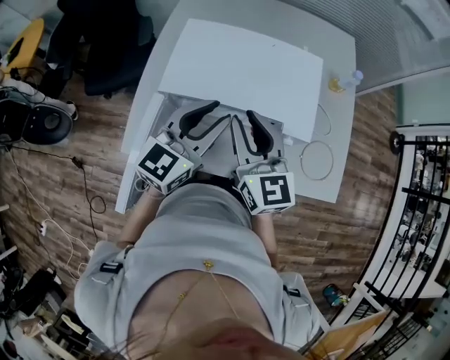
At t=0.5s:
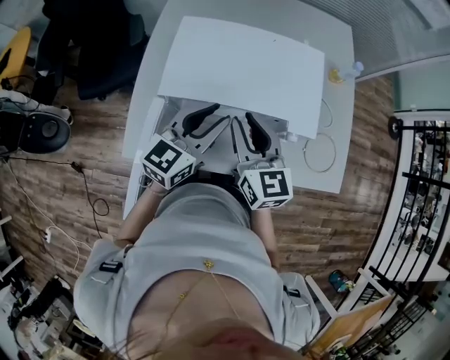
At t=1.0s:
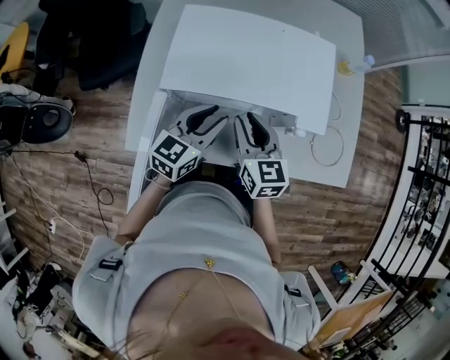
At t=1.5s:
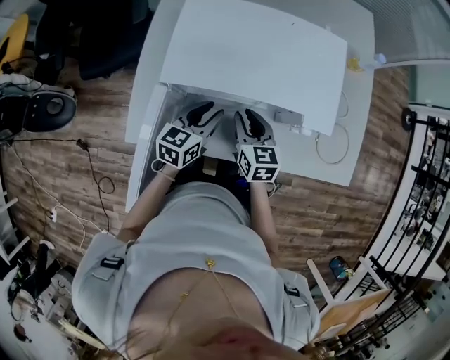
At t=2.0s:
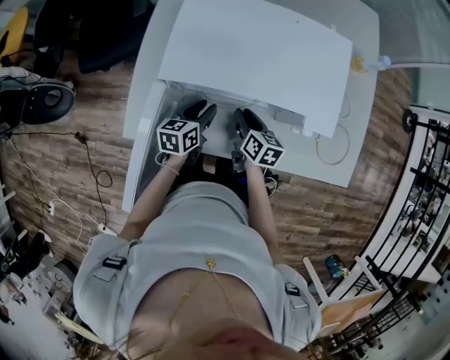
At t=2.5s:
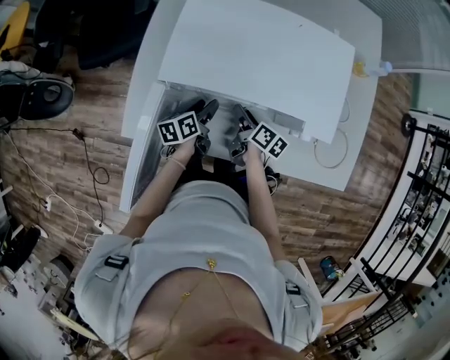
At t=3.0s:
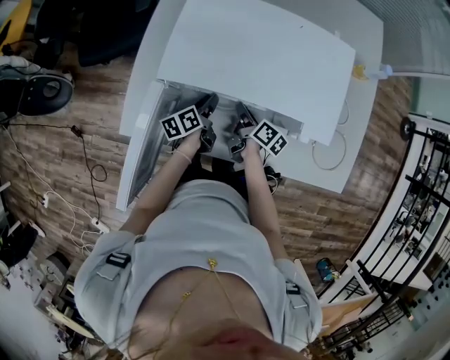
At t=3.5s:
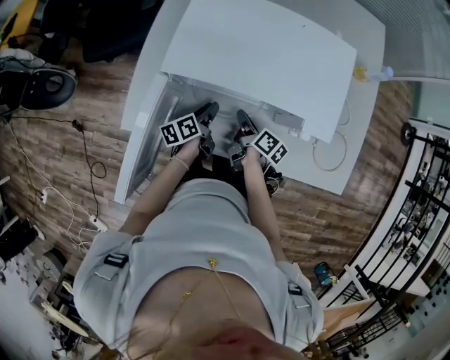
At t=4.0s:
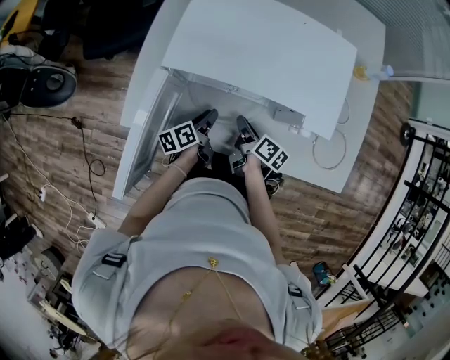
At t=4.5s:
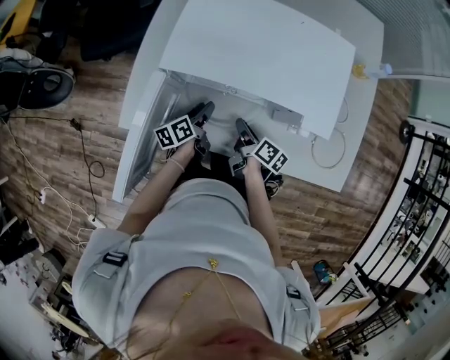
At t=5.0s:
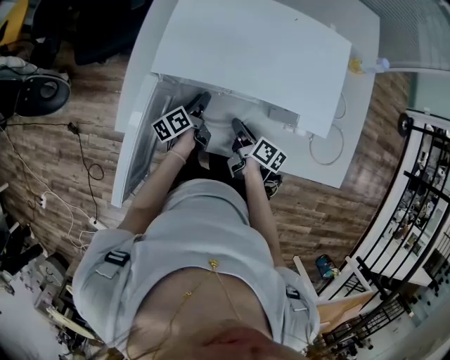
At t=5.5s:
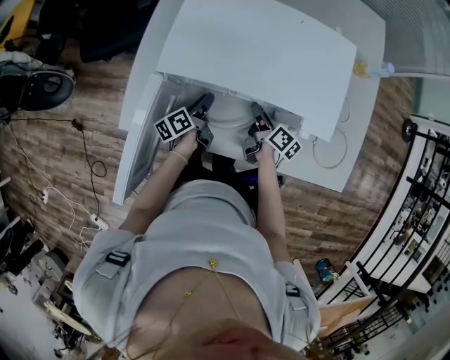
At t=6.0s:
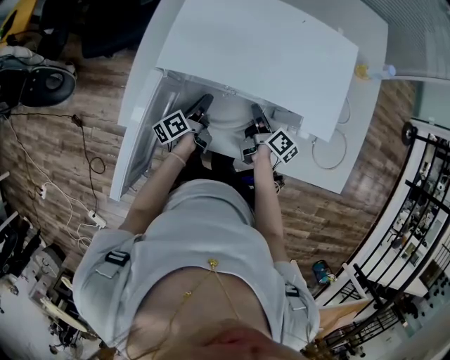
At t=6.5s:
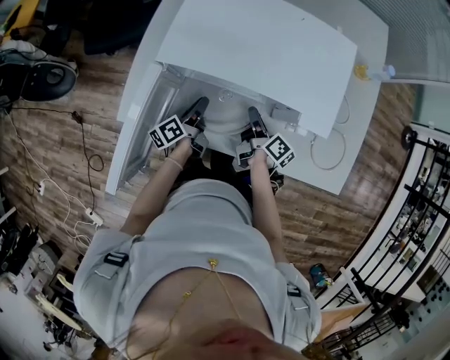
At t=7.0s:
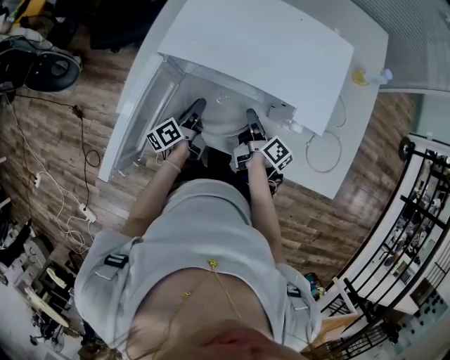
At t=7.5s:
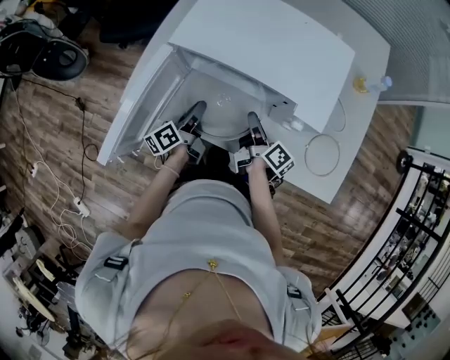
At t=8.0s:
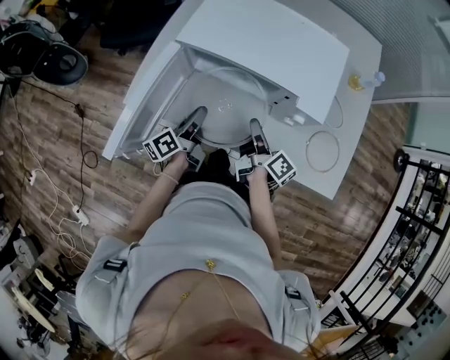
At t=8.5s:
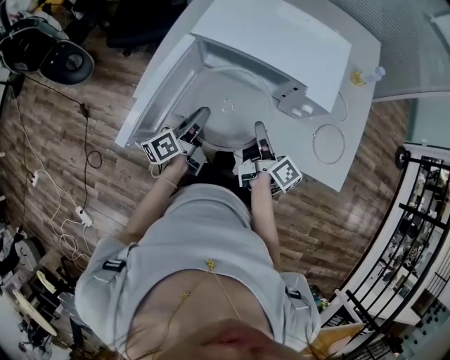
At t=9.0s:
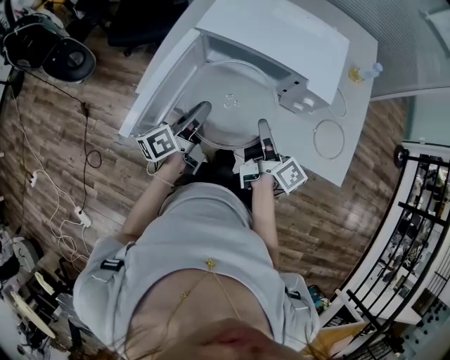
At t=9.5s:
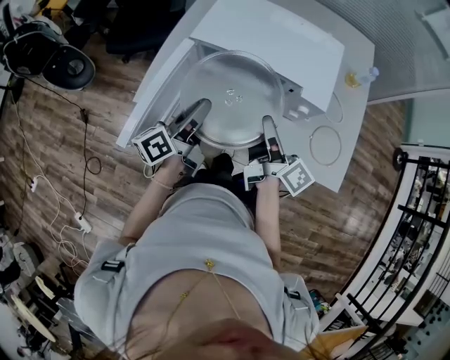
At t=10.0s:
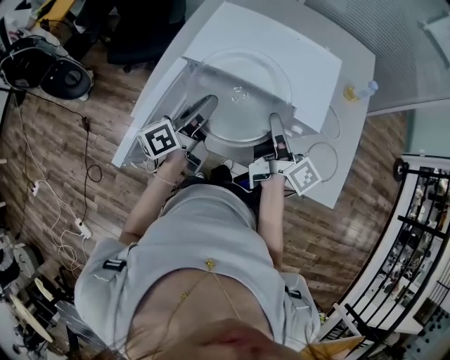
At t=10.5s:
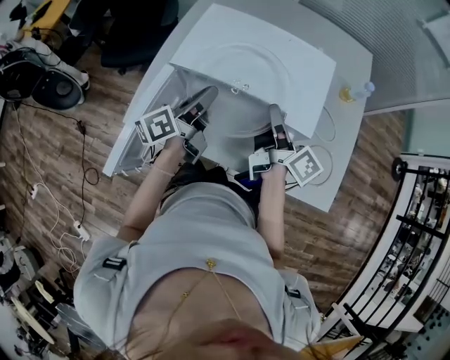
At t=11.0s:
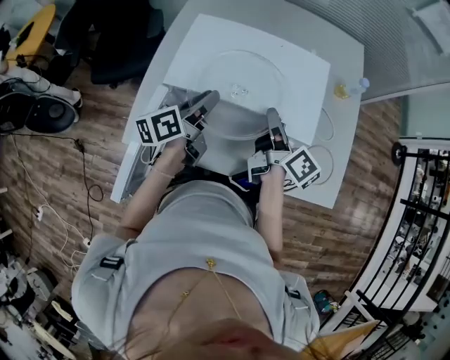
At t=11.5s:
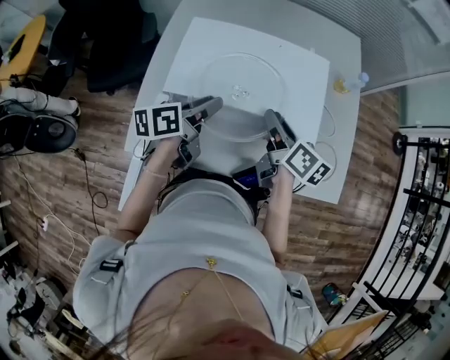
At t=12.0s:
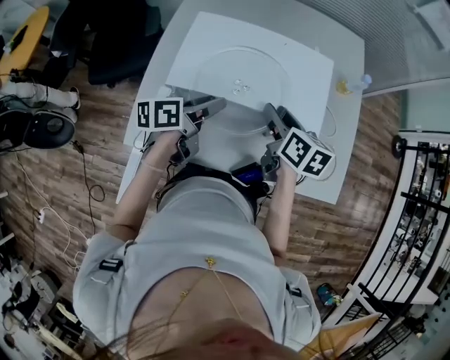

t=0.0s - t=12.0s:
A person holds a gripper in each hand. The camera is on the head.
t=0.0s - t=2.0s: The grippers both shift downward by some 30 cm. The left gripper rotates approximately 40 degrees. Meanwhile the right gripper swivels some 50 degrees.
t=2.0s - t=4.0s: The right gripper ends up some 5 cm from where it was, and turns by approximately 30 degrees. The left gripper shifts about 5 cm downward, and changes its angle by roughly 40 degrees.
t=4.0s - t=6.0s: The right gripper ends up approximately 5 cm from where it was.
t=6.0s - t=8.0s: The left gripper travels backward and upward by about 15 cm, while the right gripper heads upward and backward, covering some 15 cm.
t=8.0s - t=10.0s: The two grippers go approximately 15 cm upward.
t=10.0s - t=12.0s: The grippers both shift forward by roughly 10 cm. The left gripper rotates approximately 30 degrees, and opens up; the right gripper tips its fingers downward by roughly 30 degrees, and opens.

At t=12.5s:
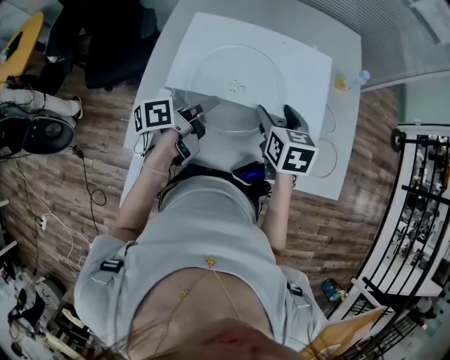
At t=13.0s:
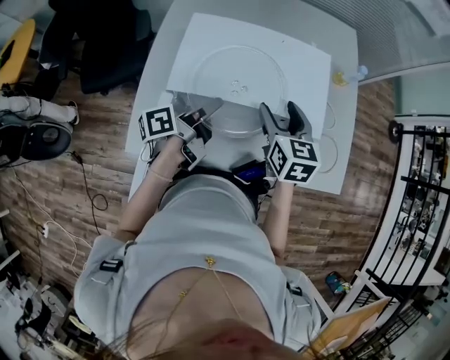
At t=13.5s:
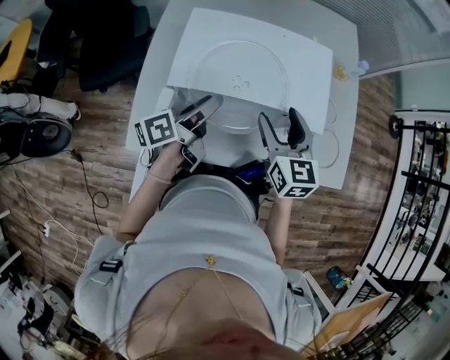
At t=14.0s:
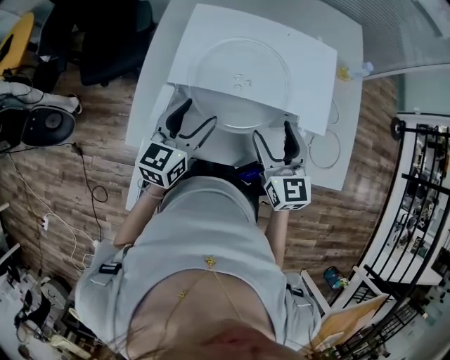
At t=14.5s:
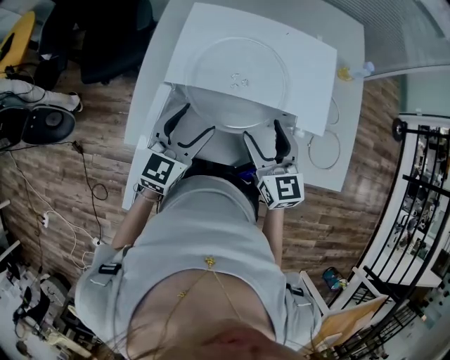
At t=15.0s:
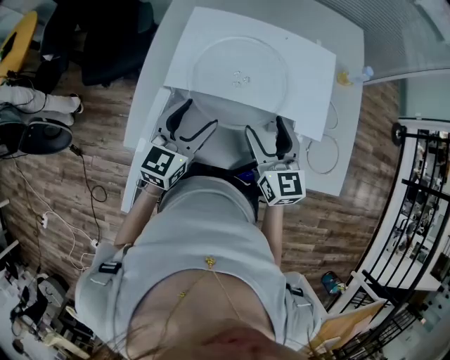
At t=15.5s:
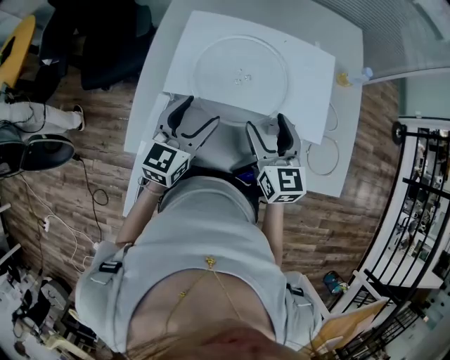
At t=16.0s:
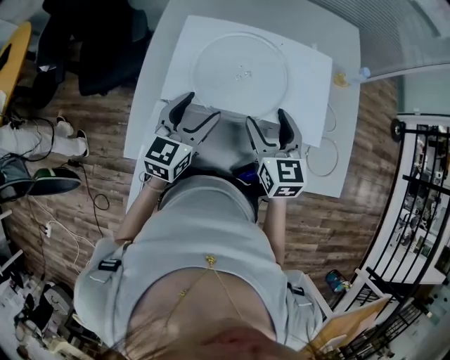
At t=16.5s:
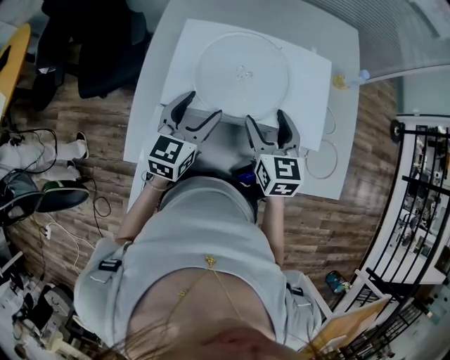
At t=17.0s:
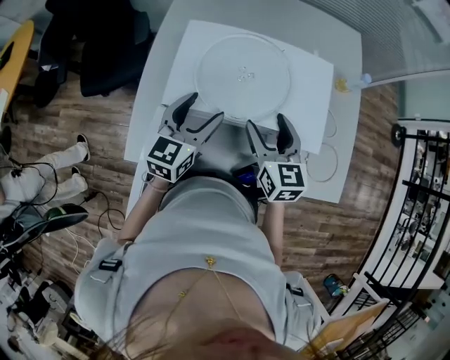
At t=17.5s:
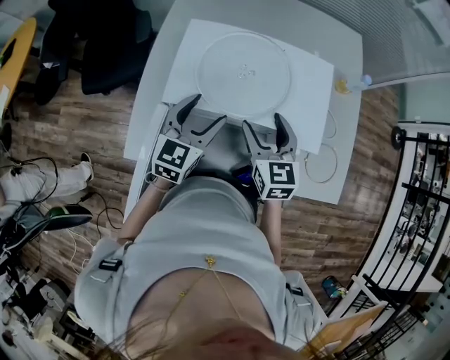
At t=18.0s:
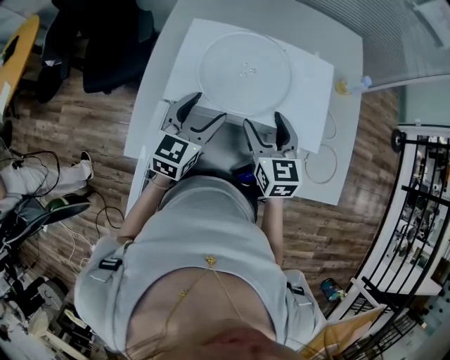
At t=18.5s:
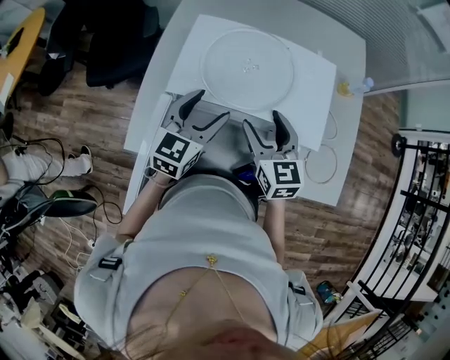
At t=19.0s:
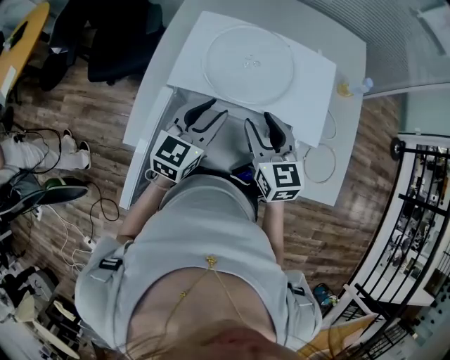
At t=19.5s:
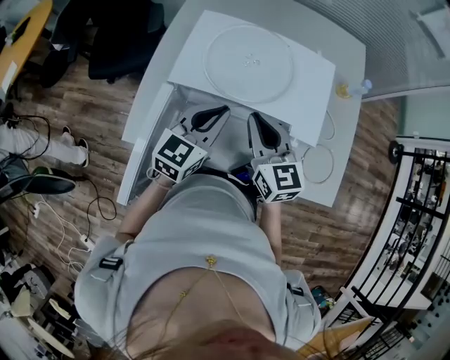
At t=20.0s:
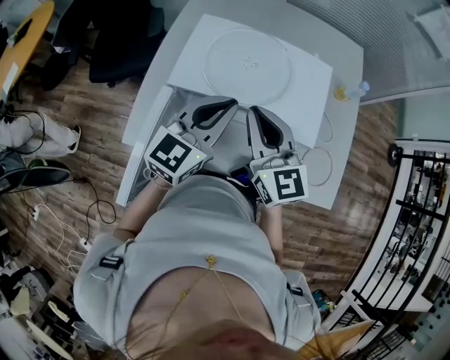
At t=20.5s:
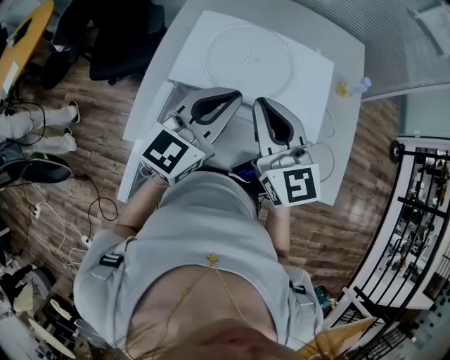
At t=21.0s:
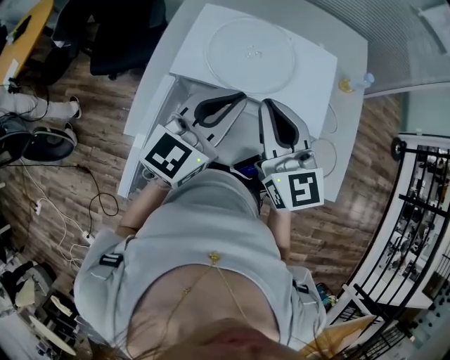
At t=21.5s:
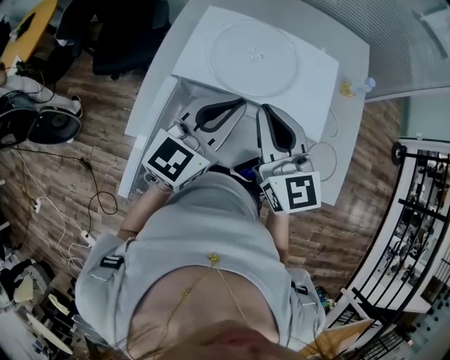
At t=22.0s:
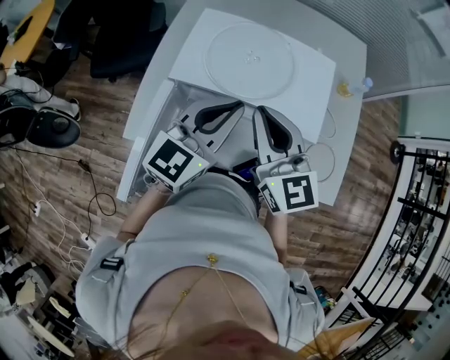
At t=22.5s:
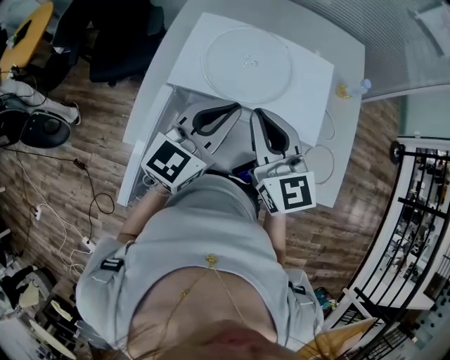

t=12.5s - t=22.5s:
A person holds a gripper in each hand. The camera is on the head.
t=12.5s - t=14.5s: Both grippers travel together backward, some 5 cm. The left gripper rotates around the line of its fingers by roughly 70 degrees, clockwise from behind, and opens up. Meanwhile the right gripper swivels approximately 30 degrees.
t=14.5s - t=16.5s: Both grippers travel together forward, roughly 10 cm.
t=16.5s - t=18.5s: The grippers make only small movements.
t=18.5s - t=20.5s: The grippers both shift upward by about 15 cm. The left gripper closes its fingers. Meanwhile the right gripper changes its angle by roughly 20 degrees, and closes up.
t=20.5s - t=22.5s: There are only small adjustments of the grippers.

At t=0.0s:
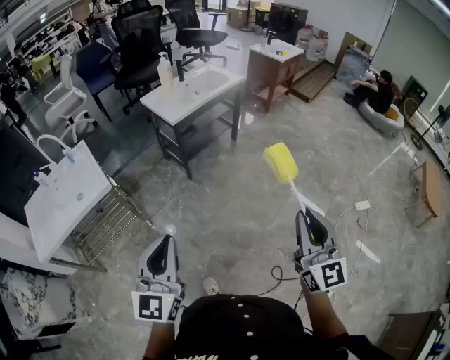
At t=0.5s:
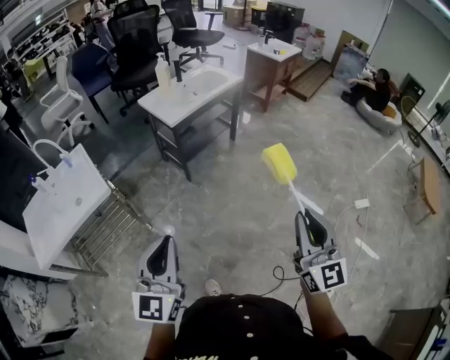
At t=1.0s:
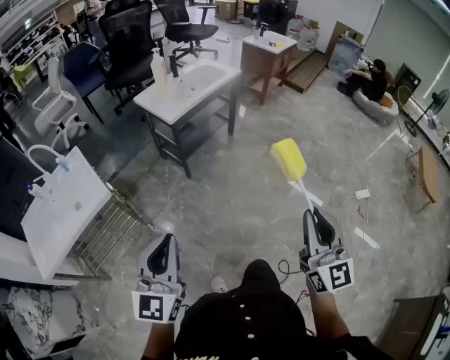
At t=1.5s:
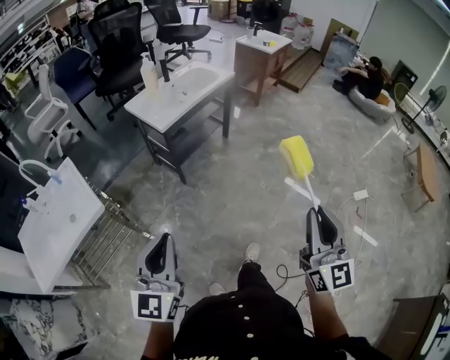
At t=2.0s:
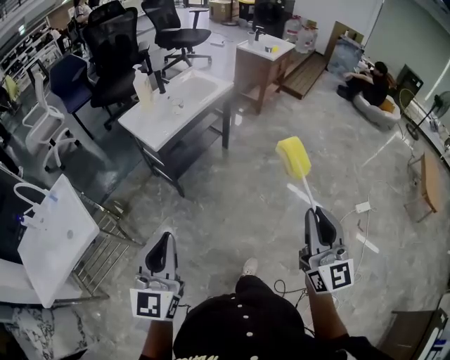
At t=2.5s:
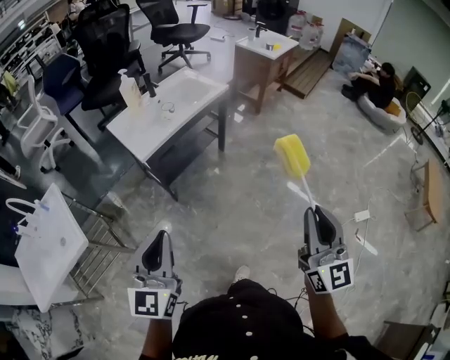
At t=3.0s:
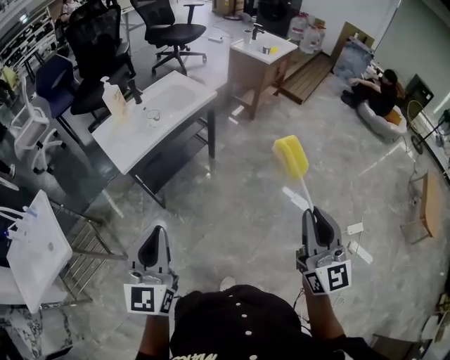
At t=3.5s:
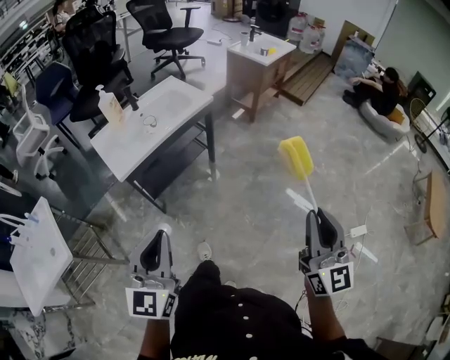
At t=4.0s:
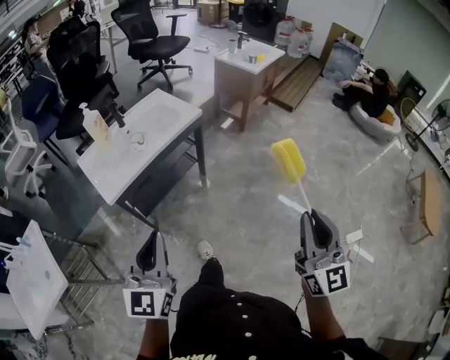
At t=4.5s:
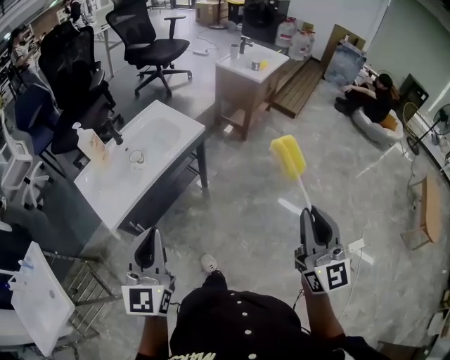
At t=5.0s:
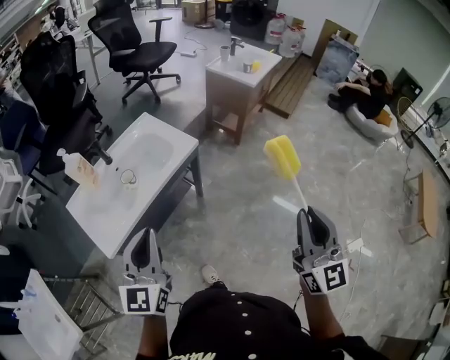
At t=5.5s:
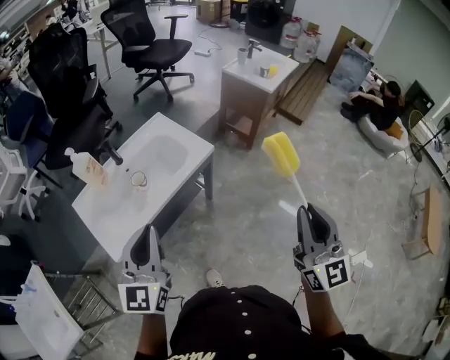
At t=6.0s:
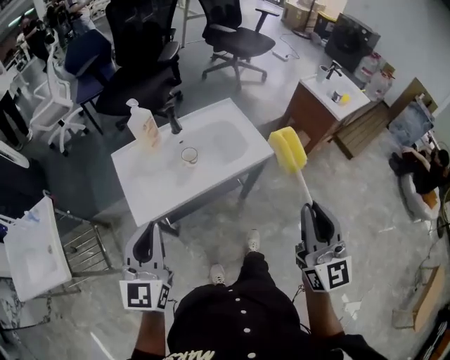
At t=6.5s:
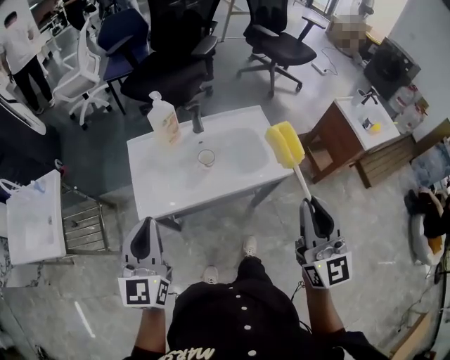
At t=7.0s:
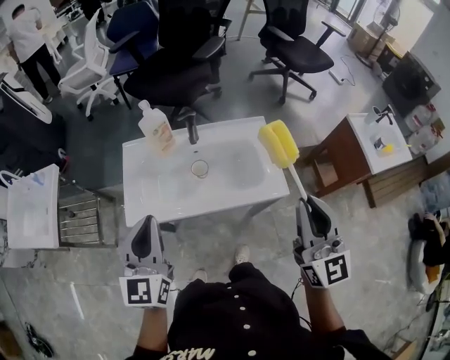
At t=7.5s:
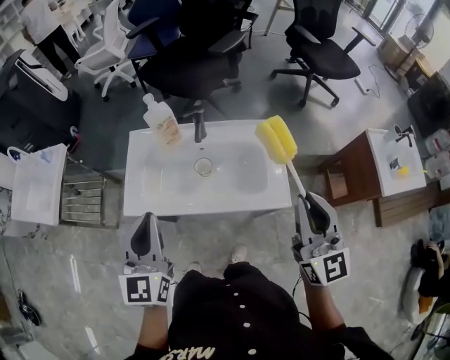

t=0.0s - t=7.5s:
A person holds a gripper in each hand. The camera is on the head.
t=0.0s - t=2.0s: The two grippers go about 20 cm forward.
t=2.0s - t=4.0s: Both grippers move forward and to the right, roughly 35 cm.
t=4.0s - t=5.5s: Both grippers move forward, some 30 cm.
t=5.5s - t=7.5s: The left gripper changes place by roughly 15 cm, and turns by about 50 degrees. Meanwhile the right gripper changes place by approximately 40 cm, and swivels about 50 degrees.
